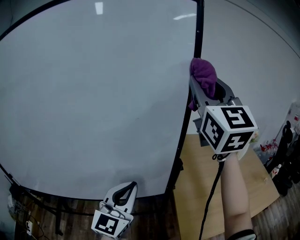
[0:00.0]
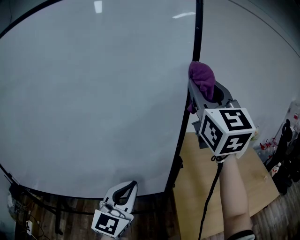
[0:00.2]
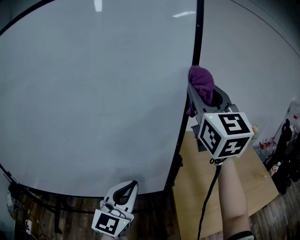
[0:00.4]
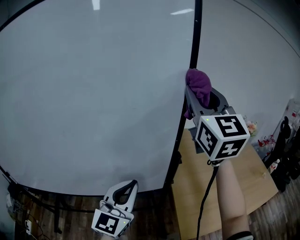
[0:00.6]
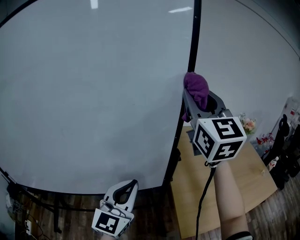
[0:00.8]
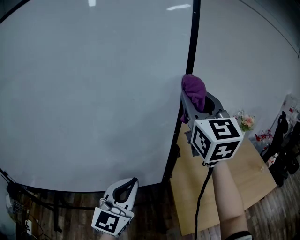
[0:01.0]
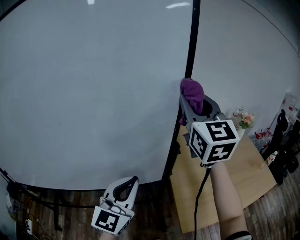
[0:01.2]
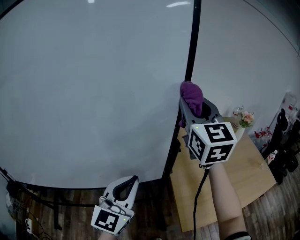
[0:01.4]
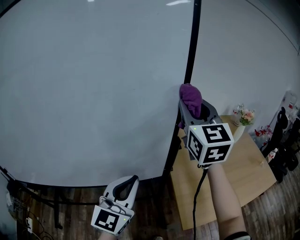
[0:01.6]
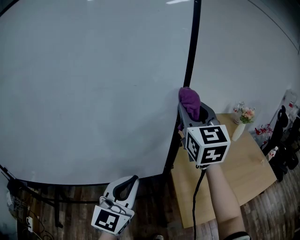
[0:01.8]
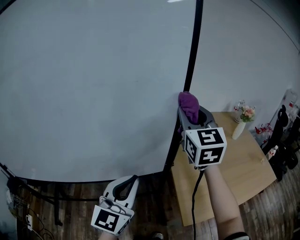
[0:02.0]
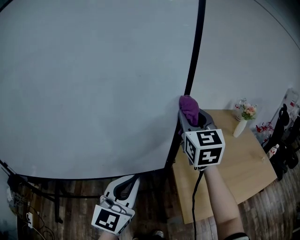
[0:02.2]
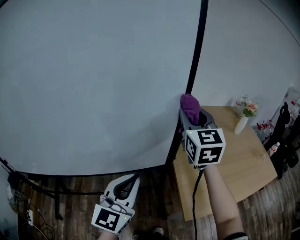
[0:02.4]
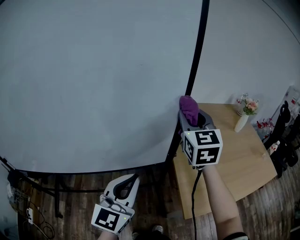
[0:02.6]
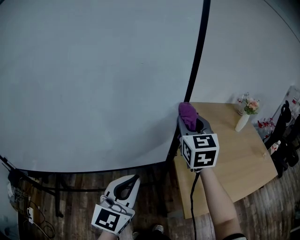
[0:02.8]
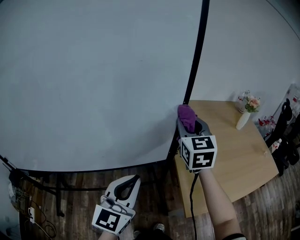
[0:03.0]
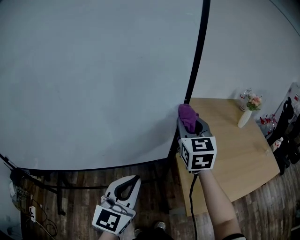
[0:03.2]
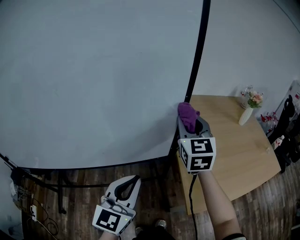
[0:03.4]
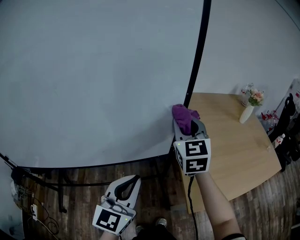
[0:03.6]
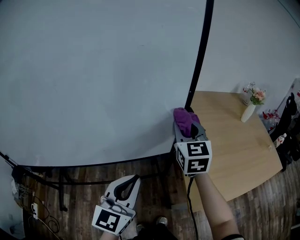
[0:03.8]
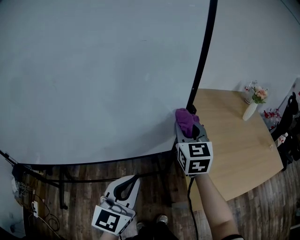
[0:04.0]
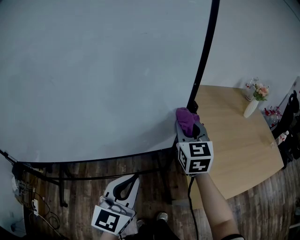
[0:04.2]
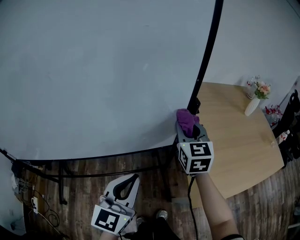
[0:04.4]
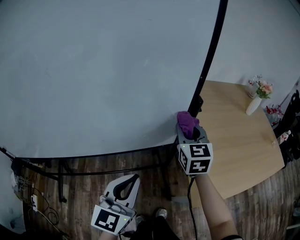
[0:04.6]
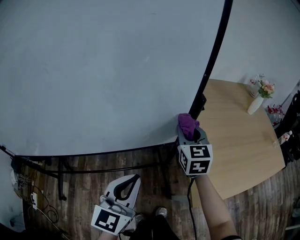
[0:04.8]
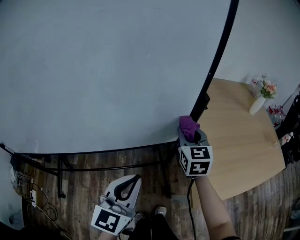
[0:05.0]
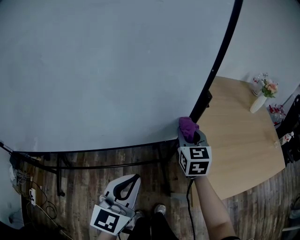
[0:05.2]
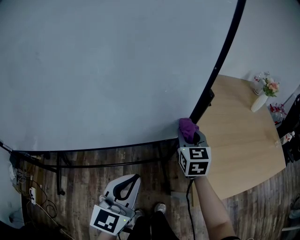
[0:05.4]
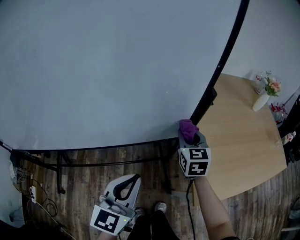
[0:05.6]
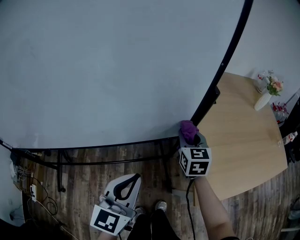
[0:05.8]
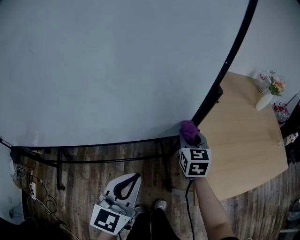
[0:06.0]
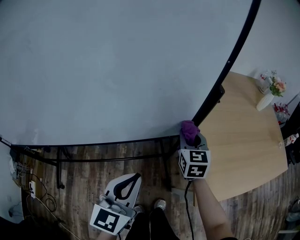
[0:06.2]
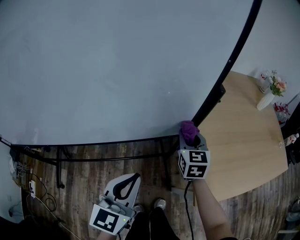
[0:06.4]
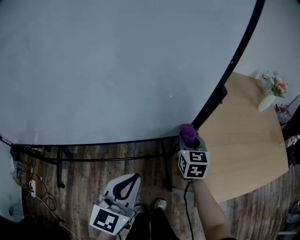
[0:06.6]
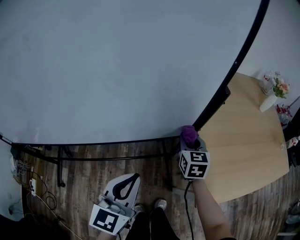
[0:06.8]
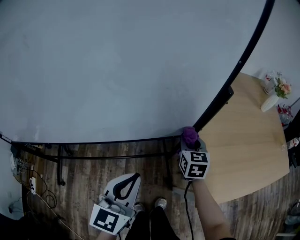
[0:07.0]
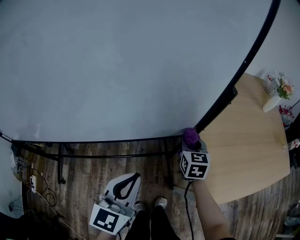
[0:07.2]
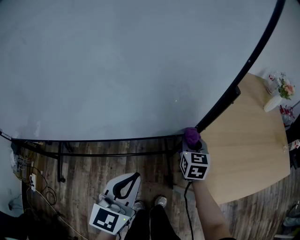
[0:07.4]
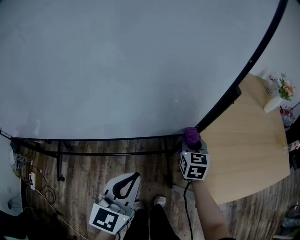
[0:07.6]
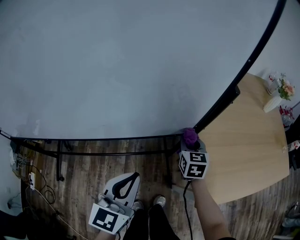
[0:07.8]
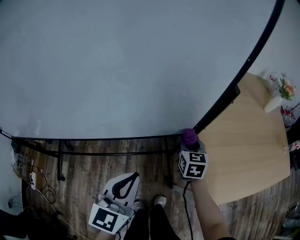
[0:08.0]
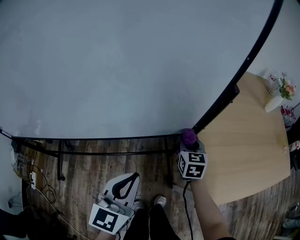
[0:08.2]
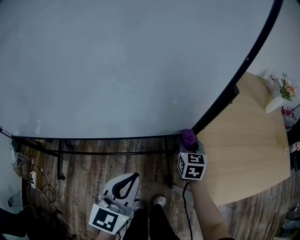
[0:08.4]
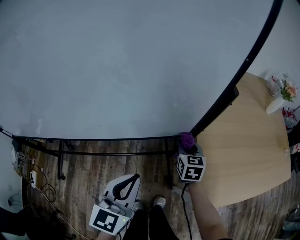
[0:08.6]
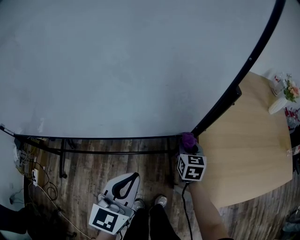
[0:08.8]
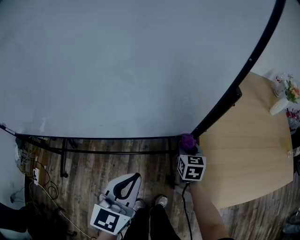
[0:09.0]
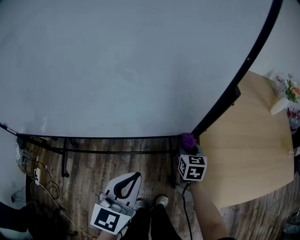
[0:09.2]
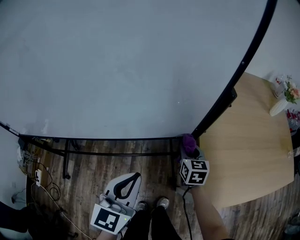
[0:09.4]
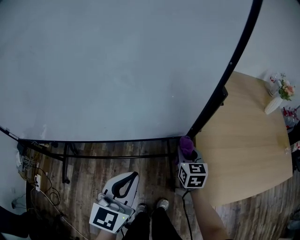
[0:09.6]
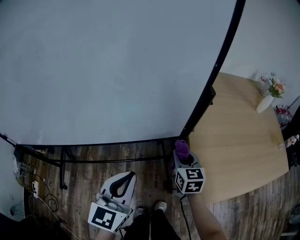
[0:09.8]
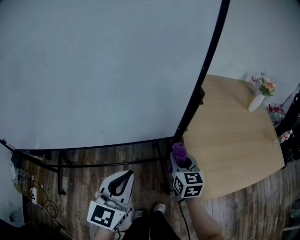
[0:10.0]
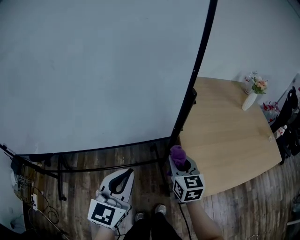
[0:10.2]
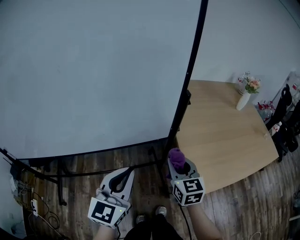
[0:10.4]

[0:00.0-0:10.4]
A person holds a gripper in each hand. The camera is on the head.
0:00.0 to 0:01.4: The right gripper is displaced downward by about 15 cm.
0:01.4 to 0:03.0: The right gripper moves downward, some 20 cm, while the left gripper shifts approximately 5 cm downward.
0:03.0 to 0:04.4: The left gripper moves downward, about 5 cm, while the right gripper is displaced downward by some 10 cm.
0:04.4 to 0:06.0: The left gripper shifts approximately 5 cm downward, while the right gripper shifts approximately 15 cm downward.
0:06.0 to 0:07.4: The right gripper is displaced downward by some 5 cm.
0:07.4 to 0:09.0: The right gripper is displaced downward by roughly 5 cm.
0:09.0 to 0:10.4: The left gripper heads upward, covering roughly 10 cm; the right gripper is displaced upward and backward by about 25 cm.

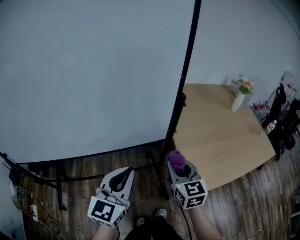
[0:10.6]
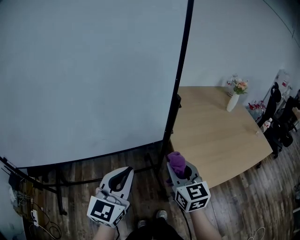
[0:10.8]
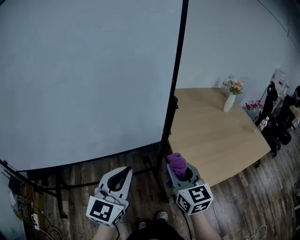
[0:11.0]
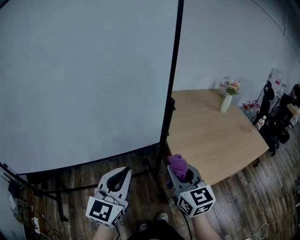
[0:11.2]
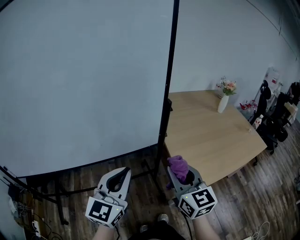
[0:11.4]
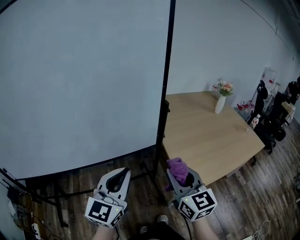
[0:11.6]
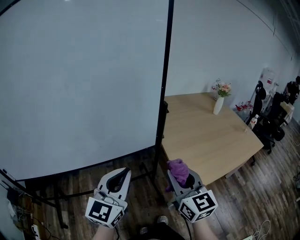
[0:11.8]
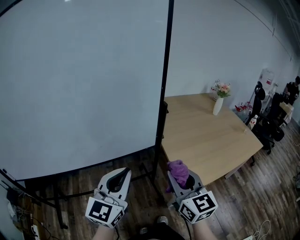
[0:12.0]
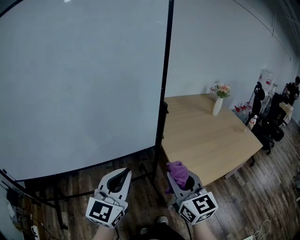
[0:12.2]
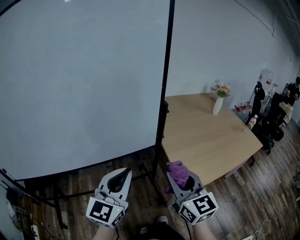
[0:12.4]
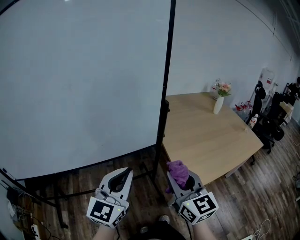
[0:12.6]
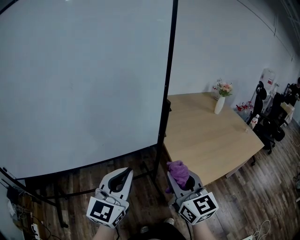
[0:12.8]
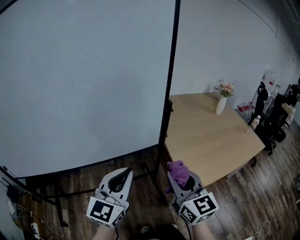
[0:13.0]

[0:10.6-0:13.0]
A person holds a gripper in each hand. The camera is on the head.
0:10.6 to 0:11.8: The left gripper heads upward, covering some 5 cm. Meanwhile the right gripper moves backward and upward, about 15 cm.
0:11.8 to 0:13.0: The grippers stay close to where they were, moving slightly.

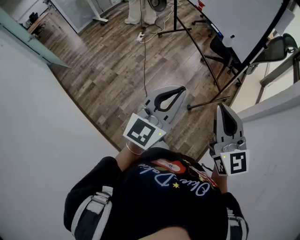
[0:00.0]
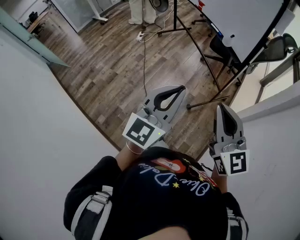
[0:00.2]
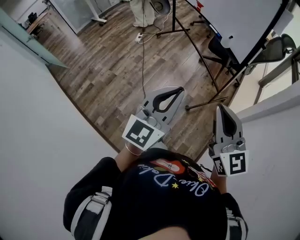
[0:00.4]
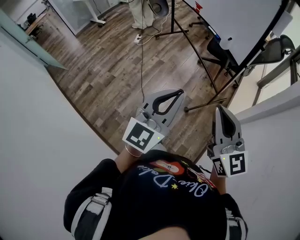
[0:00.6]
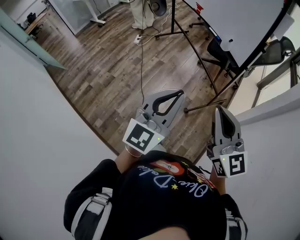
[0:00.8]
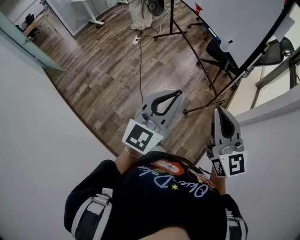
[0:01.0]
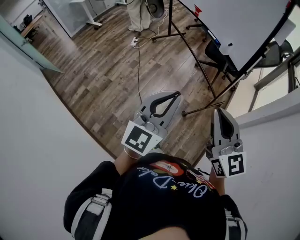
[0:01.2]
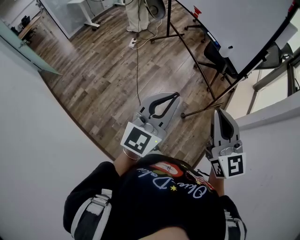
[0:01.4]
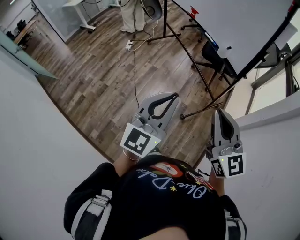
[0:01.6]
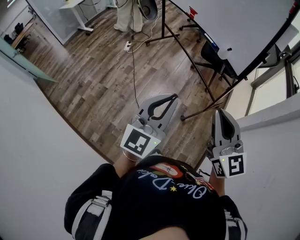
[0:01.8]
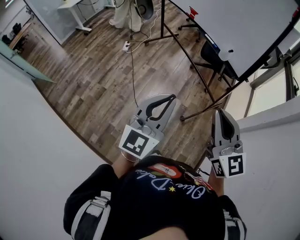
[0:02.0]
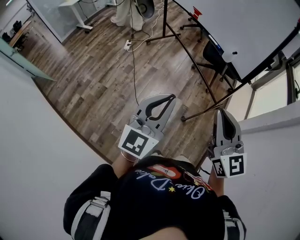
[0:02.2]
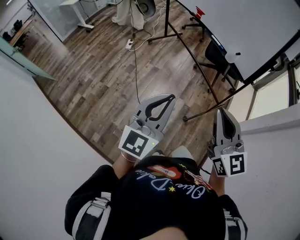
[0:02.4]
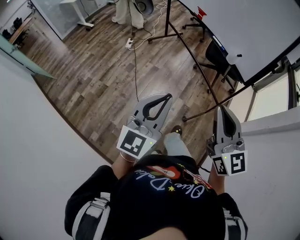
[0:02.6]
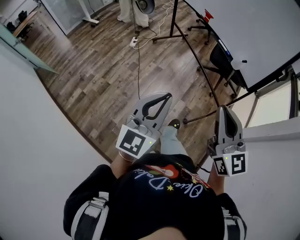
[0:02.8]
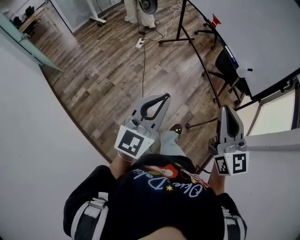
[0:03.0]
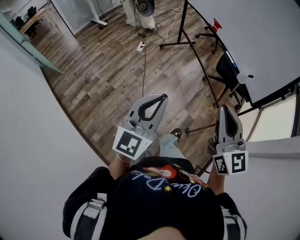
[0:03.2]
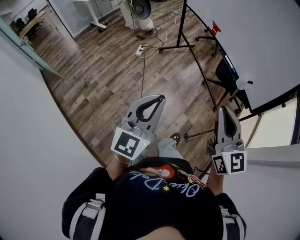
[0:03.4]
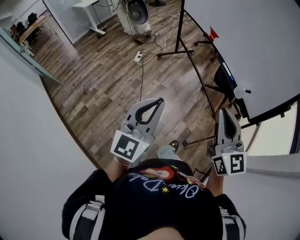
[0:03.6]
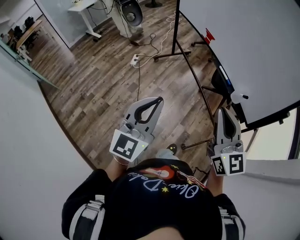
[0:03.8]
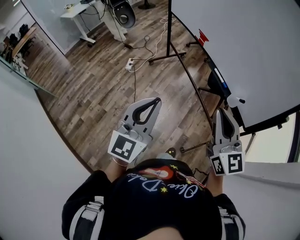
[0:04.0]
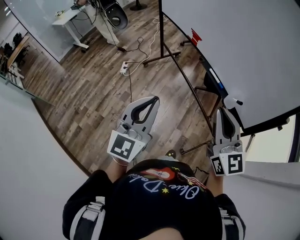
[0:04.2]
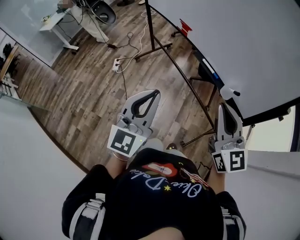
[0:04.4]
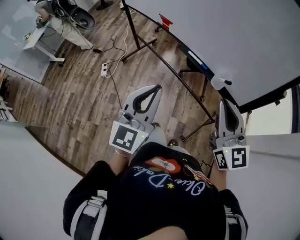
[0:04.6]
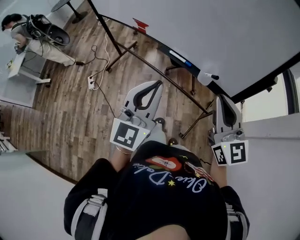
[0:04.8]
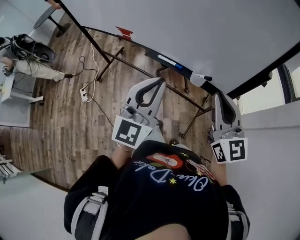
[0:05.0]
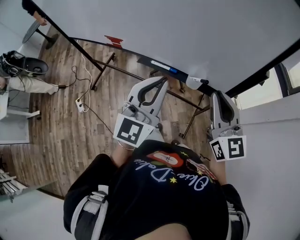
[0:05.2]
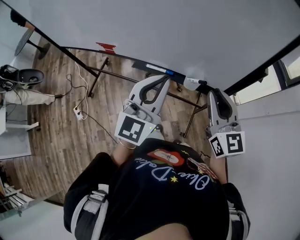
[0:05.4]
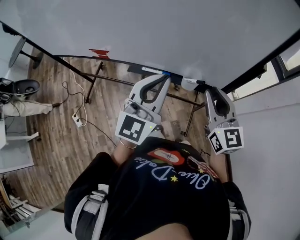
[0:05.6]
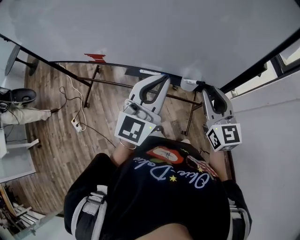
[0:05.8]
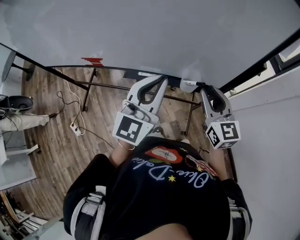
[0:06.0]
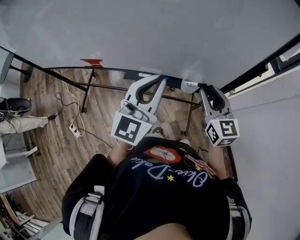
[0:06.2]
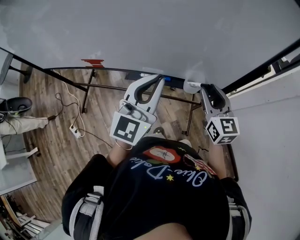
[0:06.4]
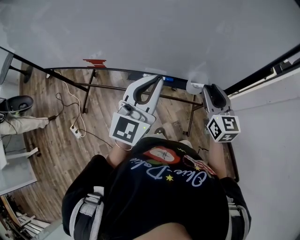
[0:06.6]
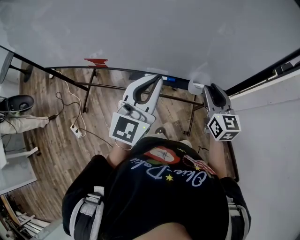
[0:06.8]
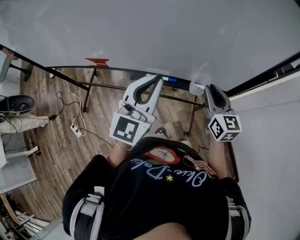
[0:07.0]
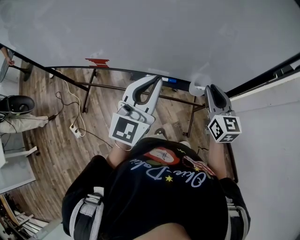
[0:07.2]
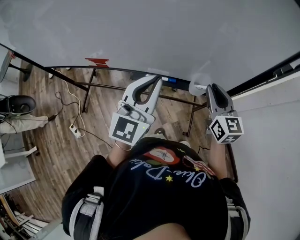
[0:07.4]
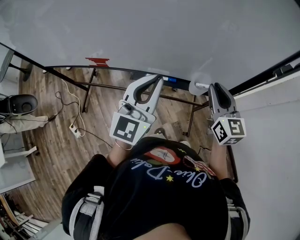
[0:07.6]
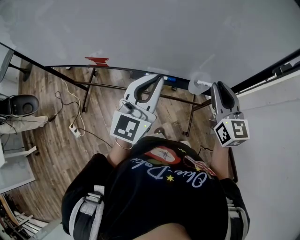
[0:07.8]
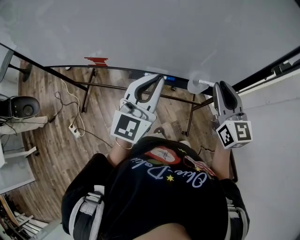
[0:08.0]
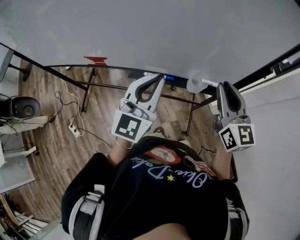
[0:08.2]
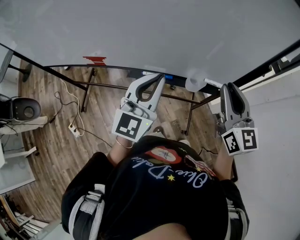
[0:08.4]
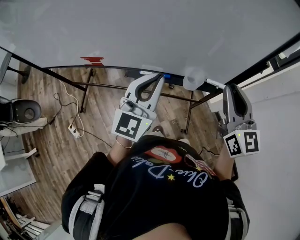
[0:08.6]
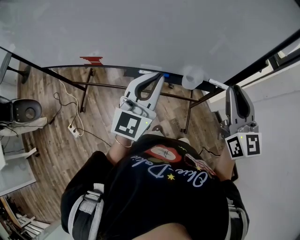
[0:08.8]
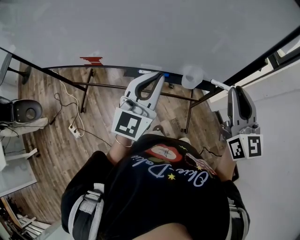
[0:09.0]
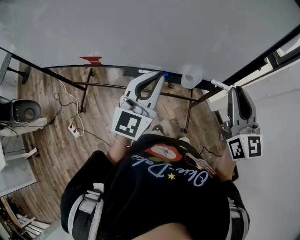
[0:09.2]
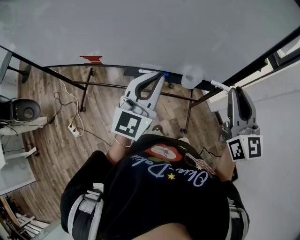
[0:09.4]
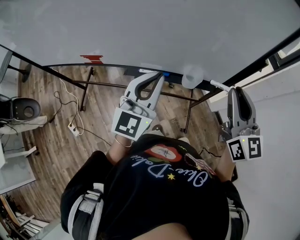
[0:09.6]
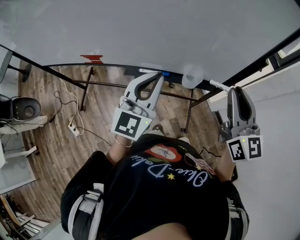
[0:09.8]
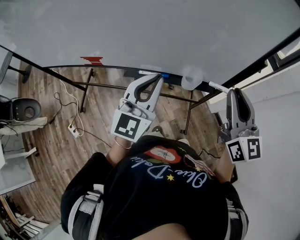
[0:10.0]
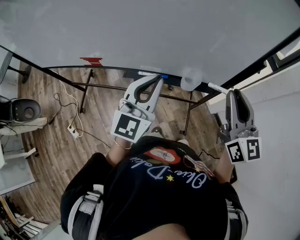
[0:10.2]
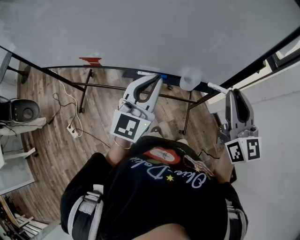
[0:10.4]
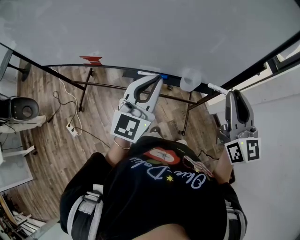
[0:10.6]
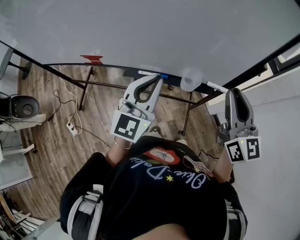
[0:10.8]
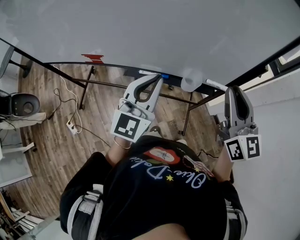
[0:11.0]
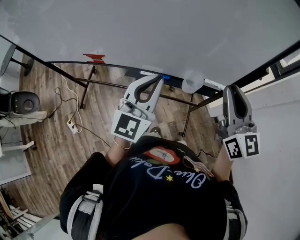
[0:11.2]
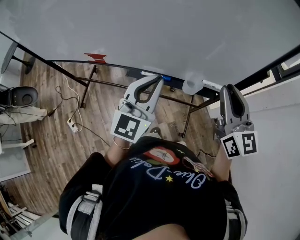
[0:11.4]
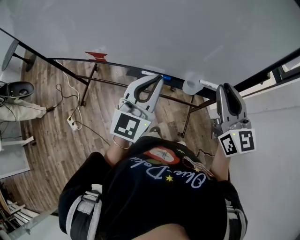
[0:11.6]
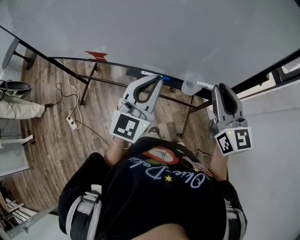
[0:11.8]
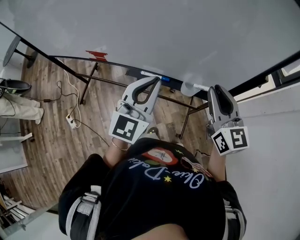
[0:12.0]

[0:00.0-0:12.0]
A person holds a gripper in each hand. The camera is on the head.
0:00.0 to 0:01.6: Both grippers move forward, about 5 cm.
0:01.6 to 0:03.0: The left gripper goes about 15 cm to the left and forward; the right gripper travels forward and to the left by about 15 cm.
0:03.0 to 0:04.4: The right gripper moves forward and to the right, some 30 cm. The left gripper goes about 30 cm forward.
0:04.4 to 0:06.0: The right gripper changes place by roughly 20 cm, rotates about 50 degrees, and opens its fingers. Meanwhile the left gripper ends up some 30 cm from where it was, and rotates about 50 degrees.
0:06.0 to 0:07.6: The left gripper goes roughly 5 cm to the left.
0:07.6 to 0:09.0: The right gripper travels upward, to the right and backward by roughly 15 cm.
0:09.0 to 0:10.4: The two grippers keep their place.
0:10.4 to 0:12.0: The right gripper moves some 5 cm.
